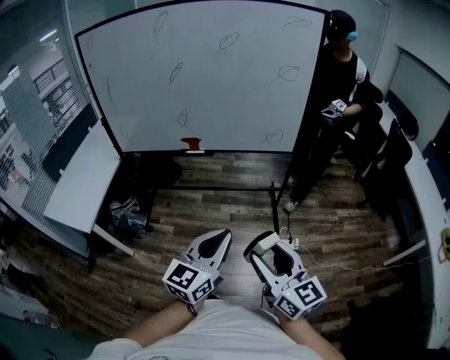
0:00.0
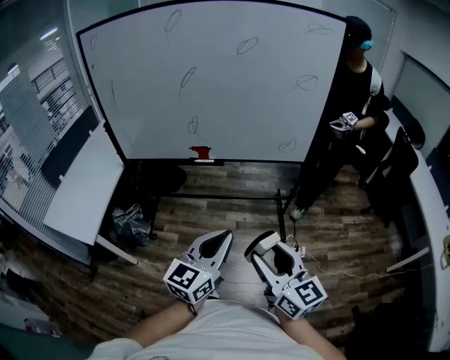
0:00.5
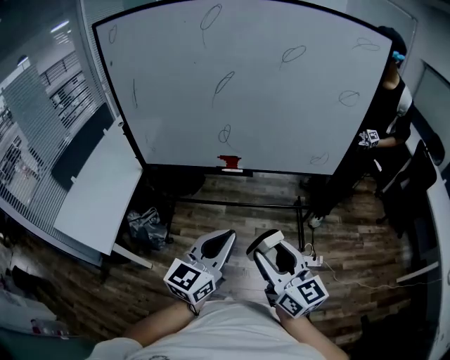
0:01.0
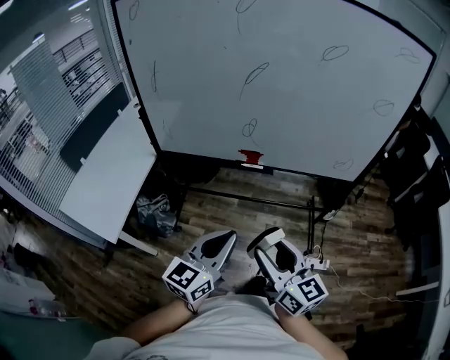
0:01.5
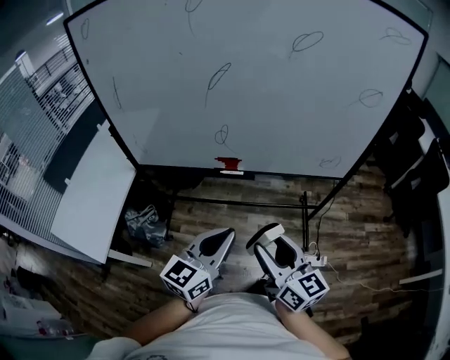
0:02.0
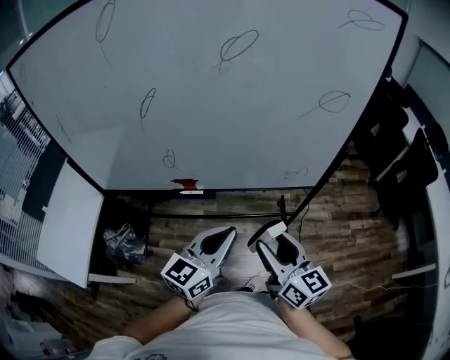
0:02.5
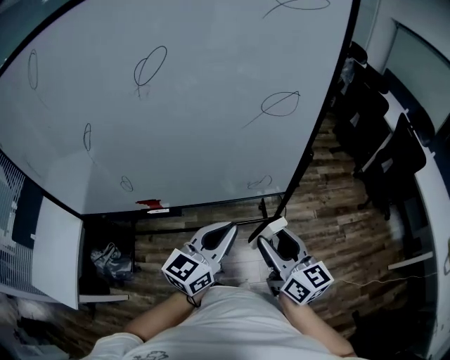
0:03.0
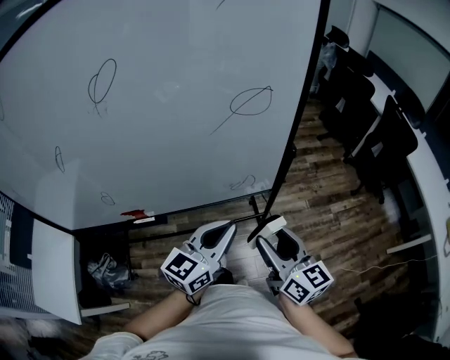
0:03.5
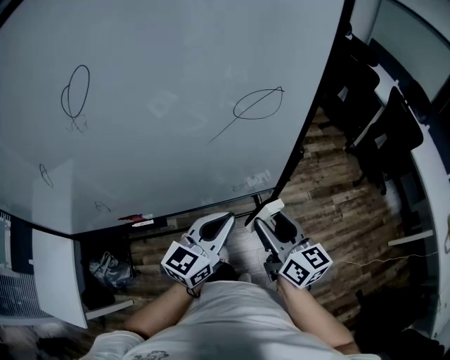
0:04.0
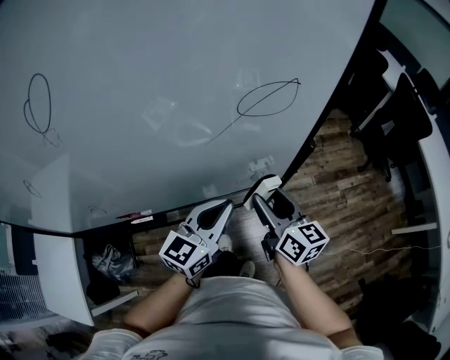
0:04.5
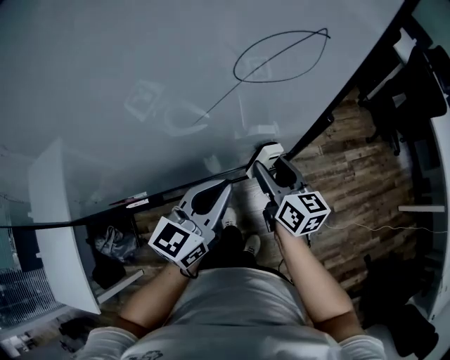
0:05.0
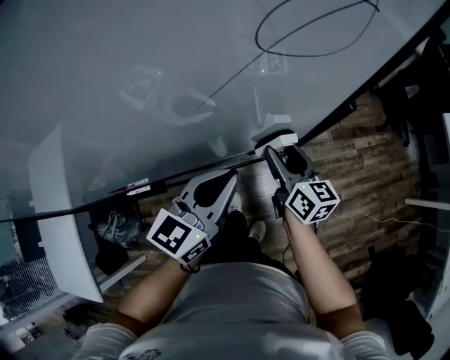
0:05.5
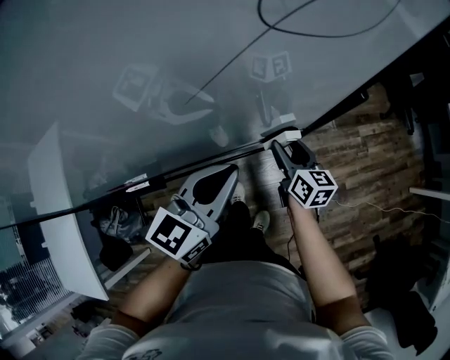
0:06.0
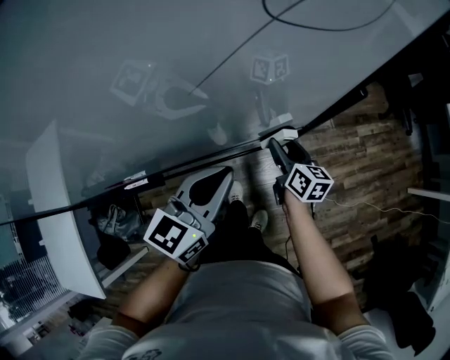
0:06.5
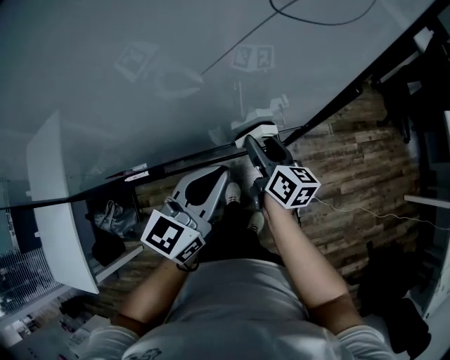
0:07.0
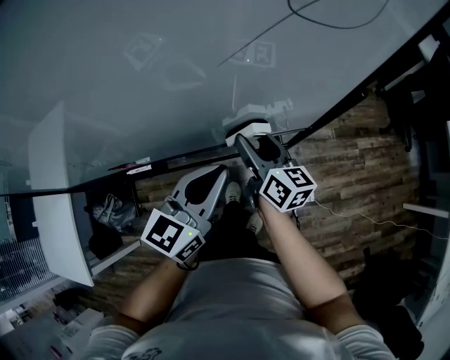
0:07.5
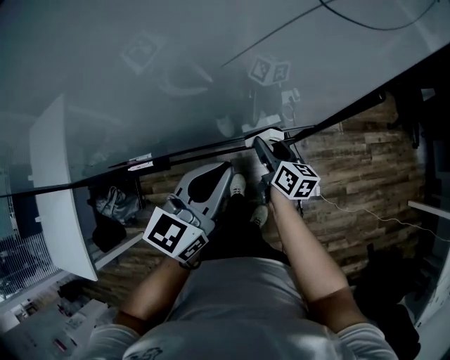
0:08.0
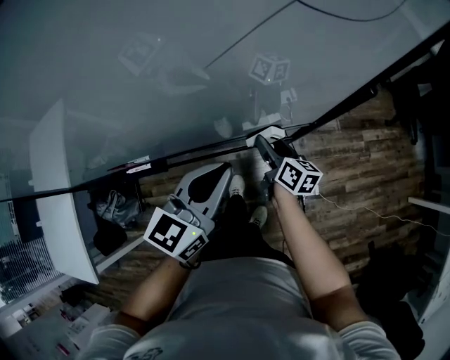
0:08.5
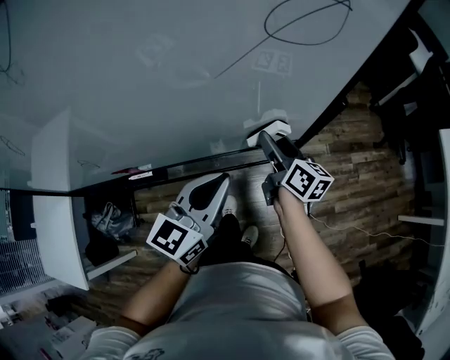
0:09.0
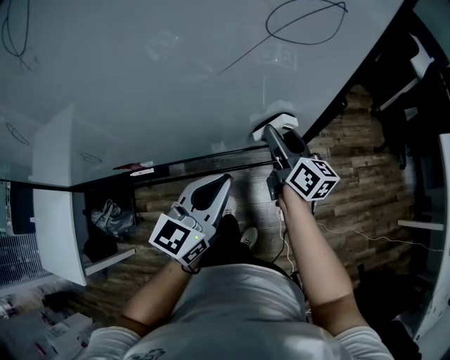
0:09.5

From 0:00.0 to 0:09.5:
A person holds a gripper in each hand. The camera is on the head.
From 0:00.0 to 0:02.0: Both grippers move forward and to the left, about 35 cm.
From 0:02.0 to 0:04.0: Both grippers are carried forward and to the right, roughly 40 cm. The right gripper turns by about 20 degrees.
From 0:04.0 to 0:05.5: The right gripper moves downward and forward, approximately 20 cm; the left gripper shifts some 10 cm forward and downward.
From 0:05.5 to 0:07.5: The left gripper ends up roughly 5 cm from where it was. The right gripper shifts approximately 10 cm to the left, and moves some 10 cm downward and comes back.
From 0:07.5 to 0:09.5: The right gripper travels to the right by roughly 10 cm, and reaches some 15 cm downward, then returns.

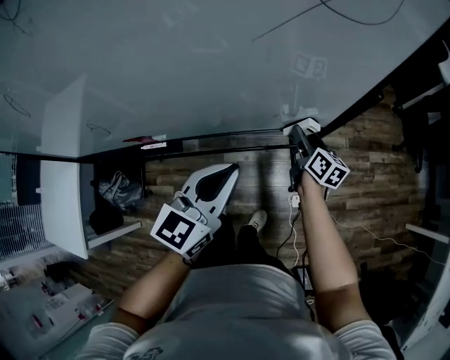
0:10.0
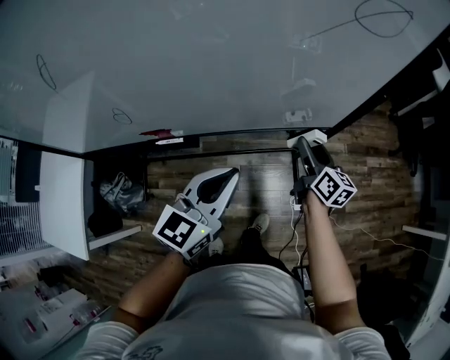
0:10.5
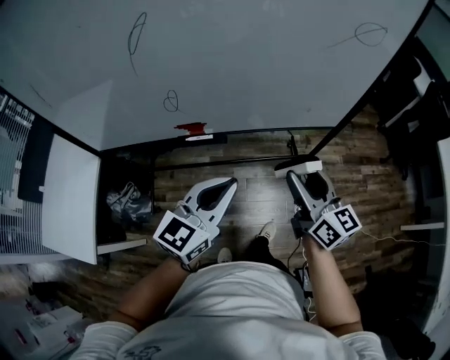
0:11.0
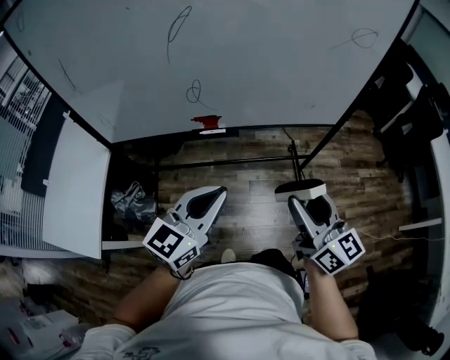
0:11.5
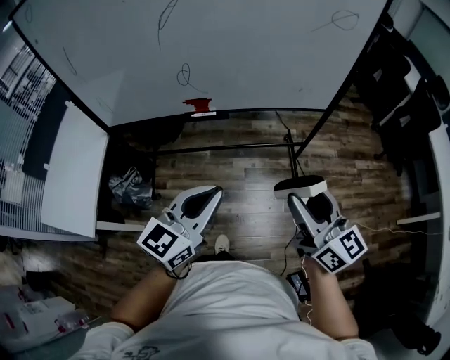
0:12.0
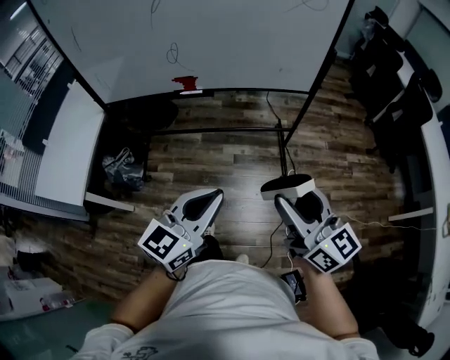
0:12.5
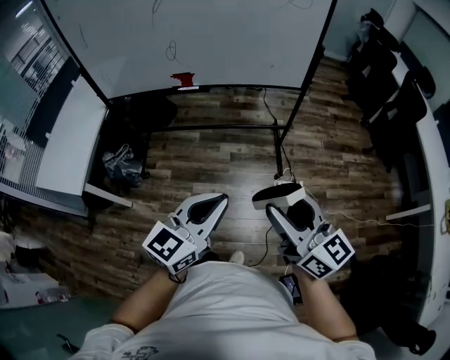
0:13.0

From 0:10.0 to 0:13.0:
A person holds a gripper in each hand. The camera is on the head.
From 0:10.0 to 0:11.5: The left gripper goes approximately 35 cm backward and to the left, while the right gripper goes roughly 60 cm backward, upward and to the left, and changes its angle by roughly 30 degrees.
From 0:11.5 to 0:13.0: Both grippers move backward and to the right, approximately 35 cm.

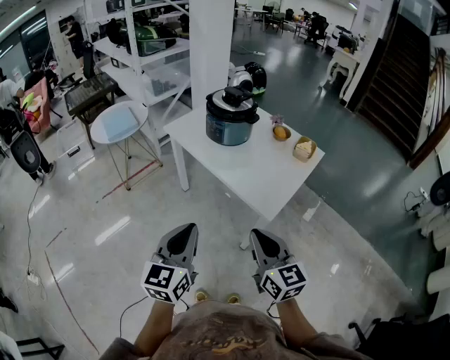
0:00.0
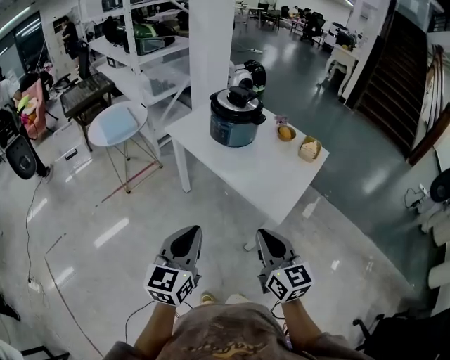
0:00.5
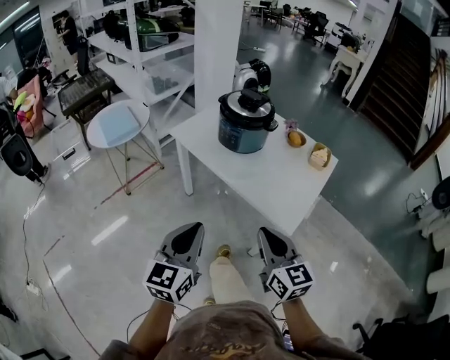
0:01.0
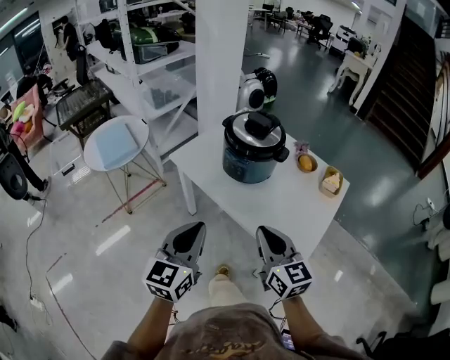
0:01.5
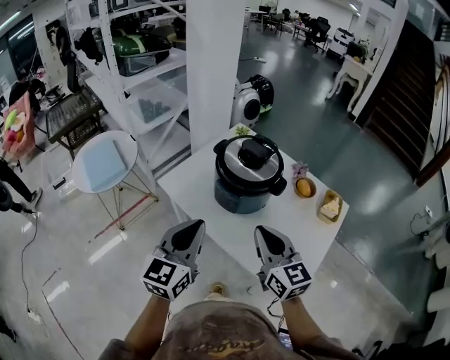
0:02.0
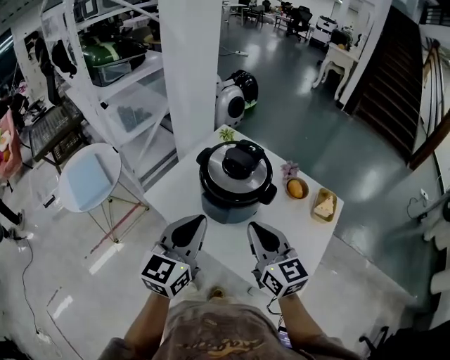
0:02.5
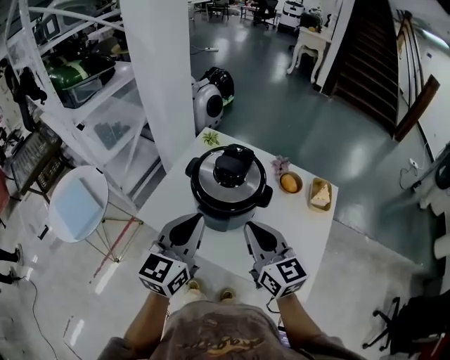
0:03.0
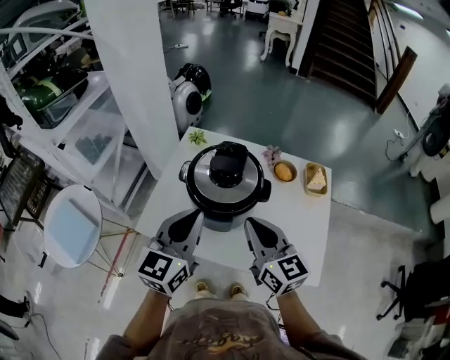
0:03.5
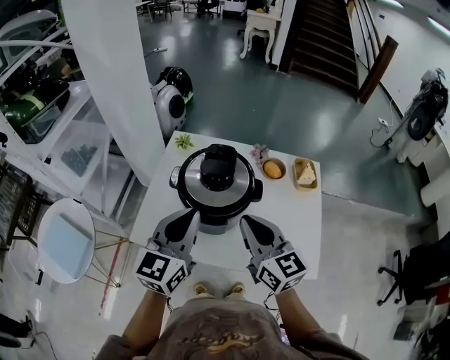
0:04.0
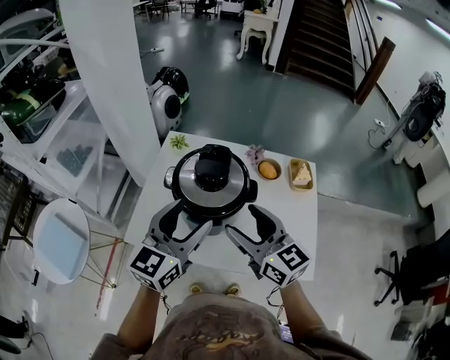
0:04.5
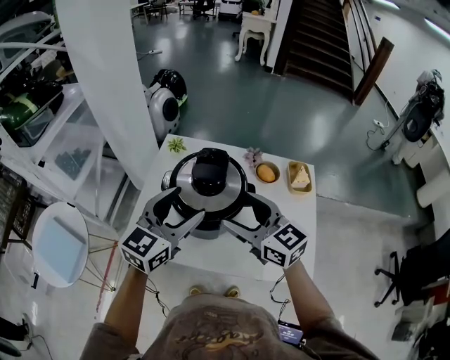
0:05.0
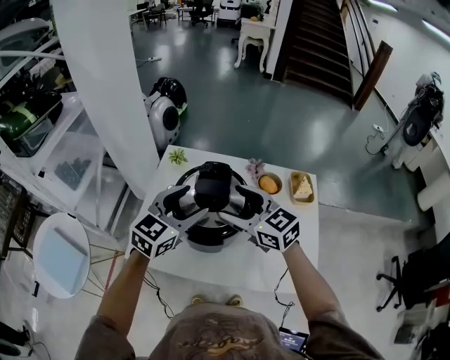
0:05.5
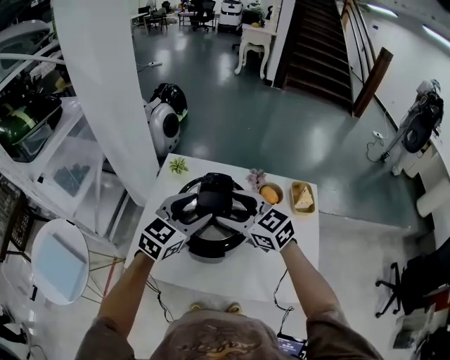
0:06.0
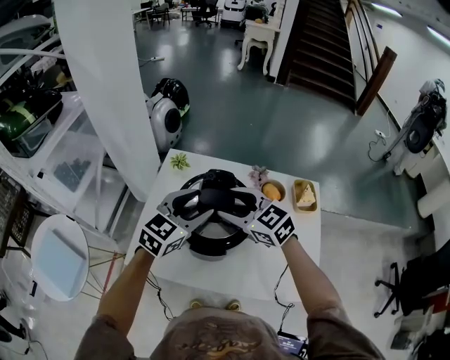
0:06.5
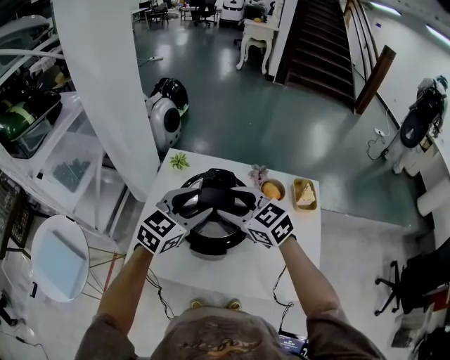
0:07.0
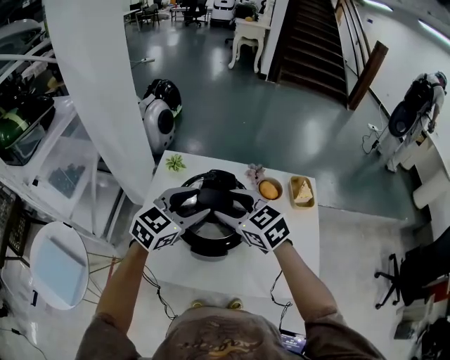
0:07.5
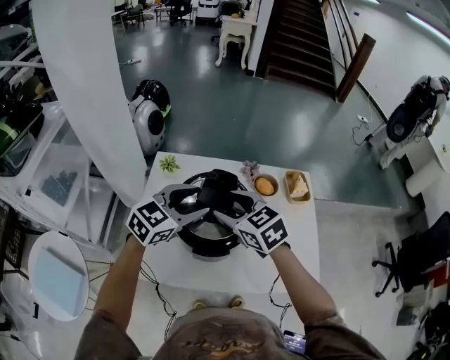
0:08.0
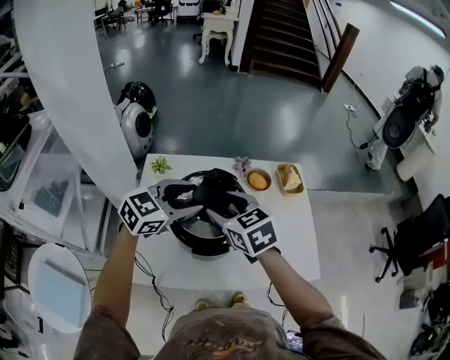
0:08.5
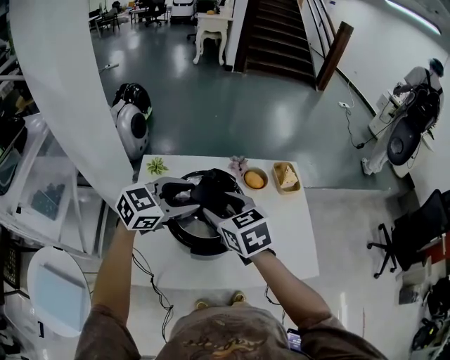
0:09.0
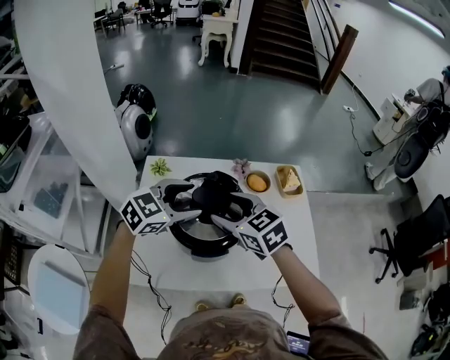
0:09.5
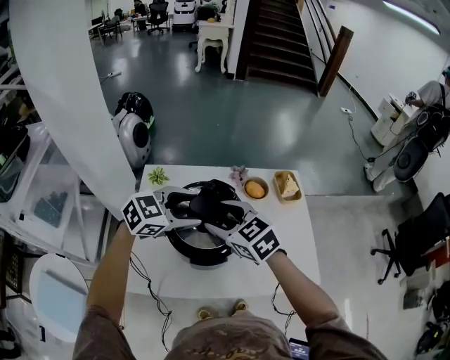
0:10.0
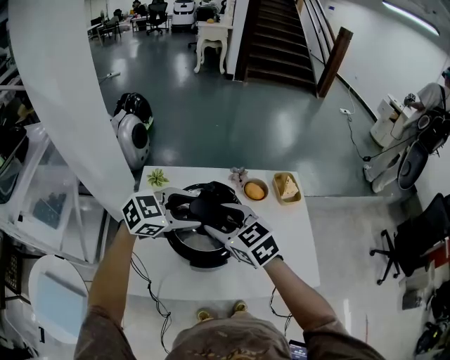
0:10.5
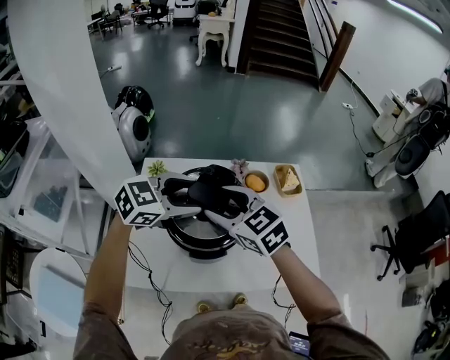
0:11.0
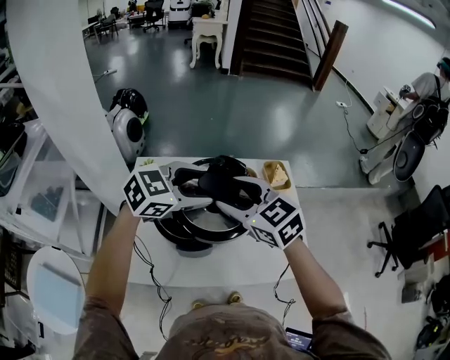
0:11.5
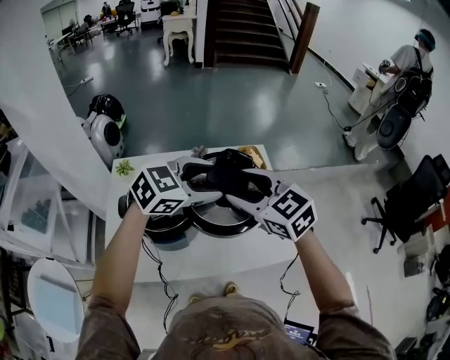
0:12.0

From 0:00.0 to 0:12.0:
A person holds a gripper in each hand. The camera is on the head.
From 0:00.0 to 0:02.0: Both grippers travel together forward, some 40 cm.
From 0:02.0 to 0:04.0: The left gripper ends up roughly 15 cm from where it was, and rotates some 30 degrees. The right gripper shifts by about 10 cm, and turns by about 20 degrees.
From 0:04.0 to 0:06.0: Both grippers travel together forward, roughly 15 cm. The right gripper changes its angle by some 30 degrees, and opens. Meanwhile the left gripper changes its angle by approximately 30 degrees, and opens its fingers.
From 0:06.0 to 0:08.0: The right gripper swivels some 20 degrees.
From 0:08.0 to 0:10.0: The left gripper changes its angle by about 20 degrees.
From 0:10.0 to 0:12.0: Both grippers move to the right and upward, roughly 20 cm.

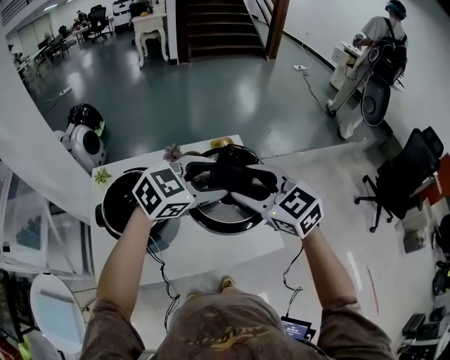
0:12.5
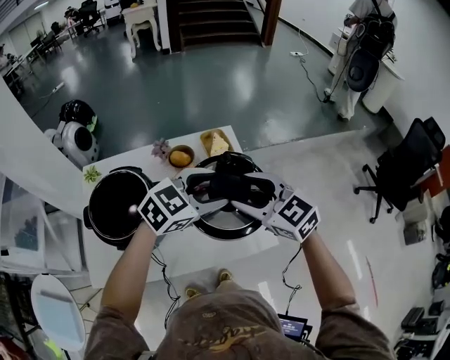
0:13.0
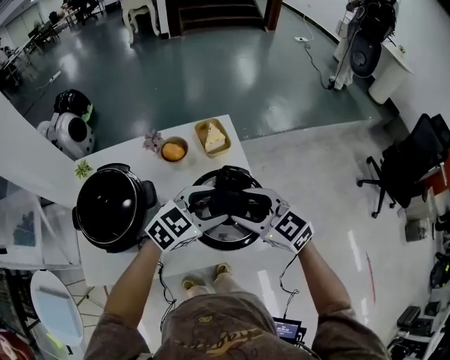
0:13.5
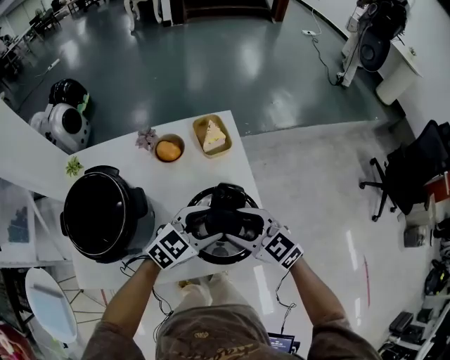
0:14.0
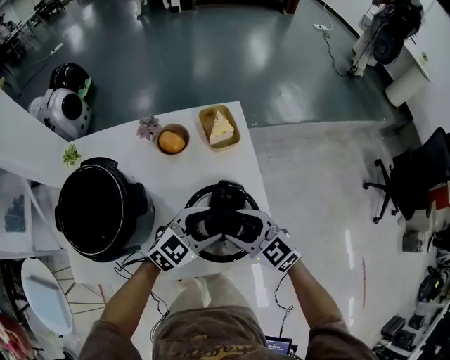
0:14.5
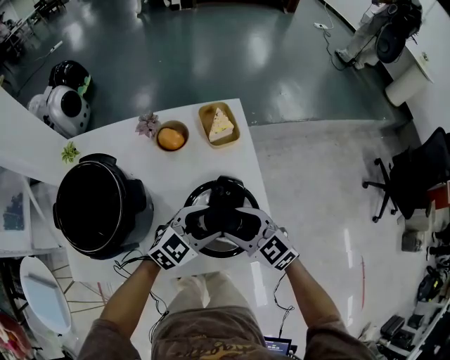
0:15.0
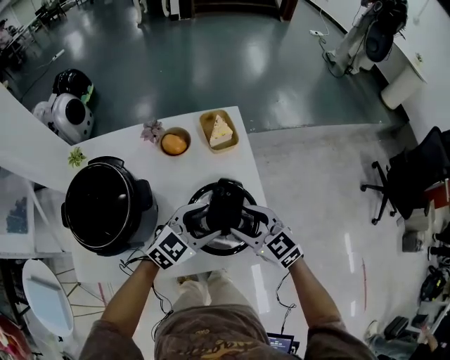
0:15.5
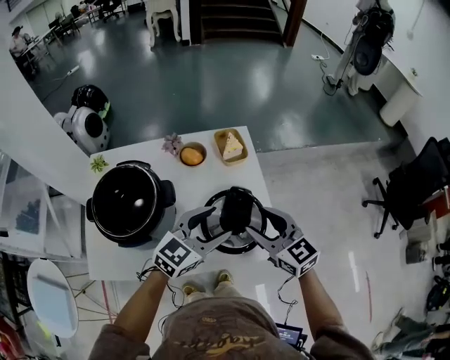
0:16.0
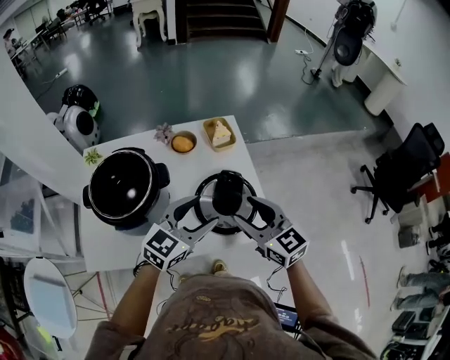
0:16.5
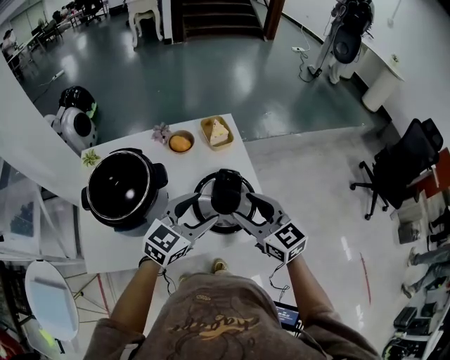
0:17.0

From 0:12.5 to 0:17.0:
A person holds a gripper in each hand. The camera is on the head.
From 0:12.5 to 0:14.5: The grippers both shift downward by approximately 25 cm.
From 0:14.5 to 0:17.0: Both grippers travel together upward and backward, some 15 cm. The right gripper turns by roughly 20 degrees.
